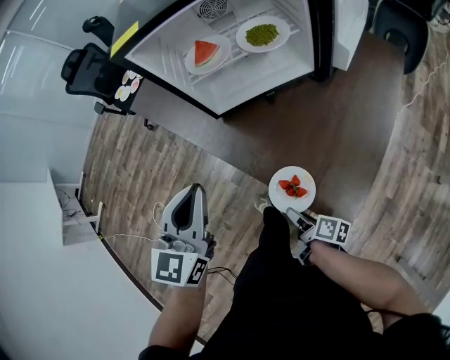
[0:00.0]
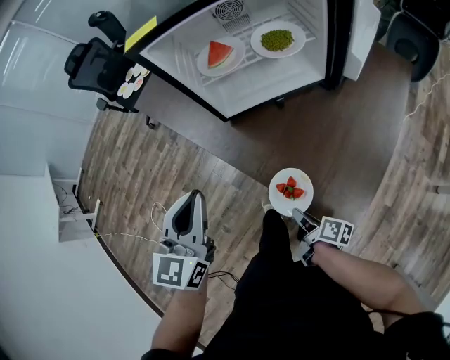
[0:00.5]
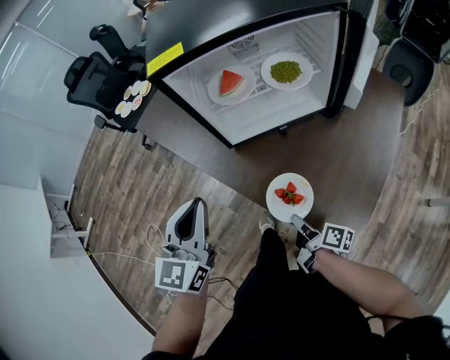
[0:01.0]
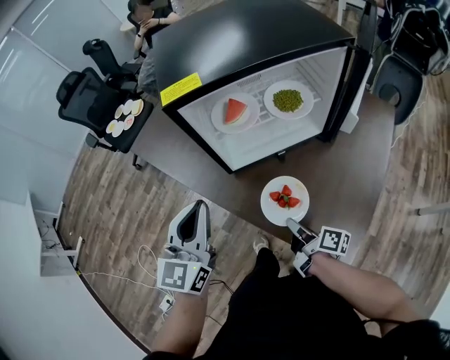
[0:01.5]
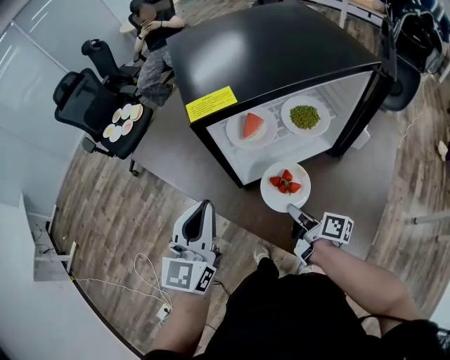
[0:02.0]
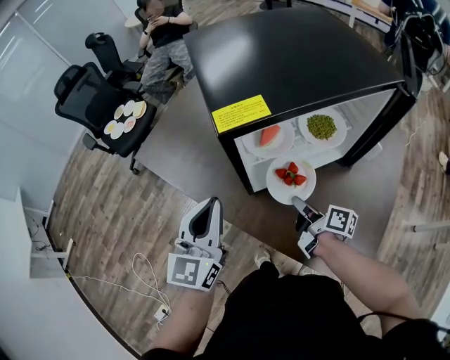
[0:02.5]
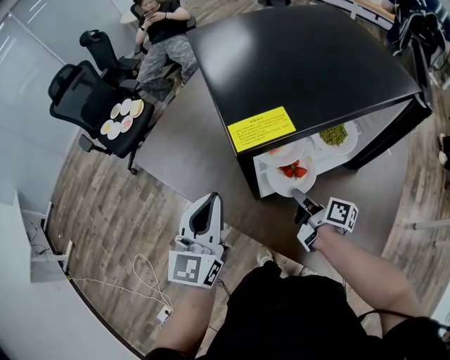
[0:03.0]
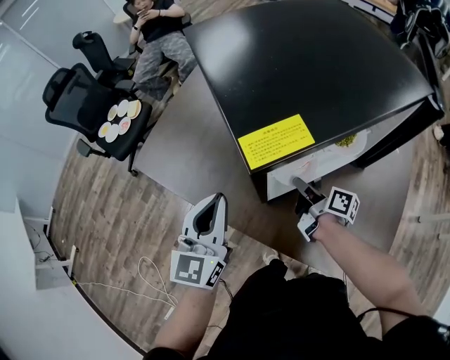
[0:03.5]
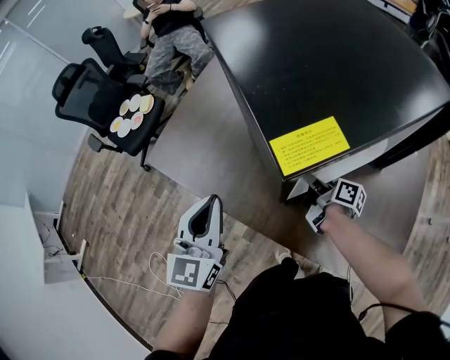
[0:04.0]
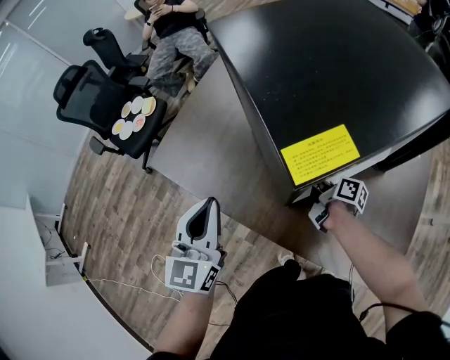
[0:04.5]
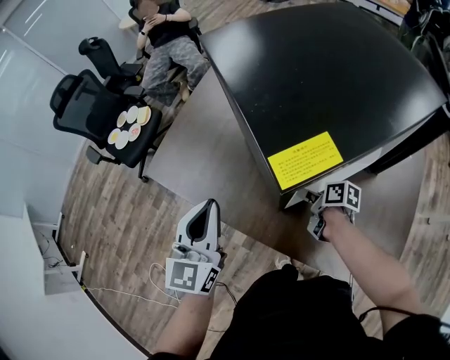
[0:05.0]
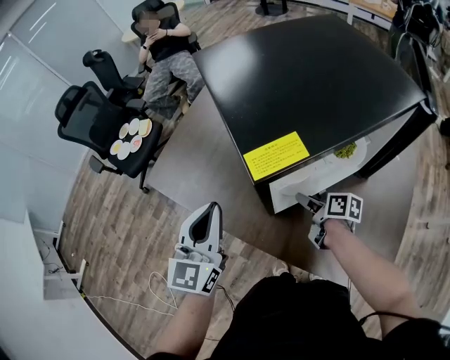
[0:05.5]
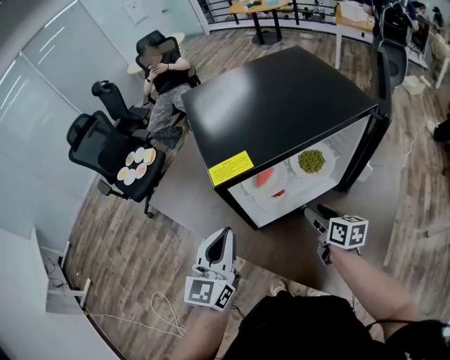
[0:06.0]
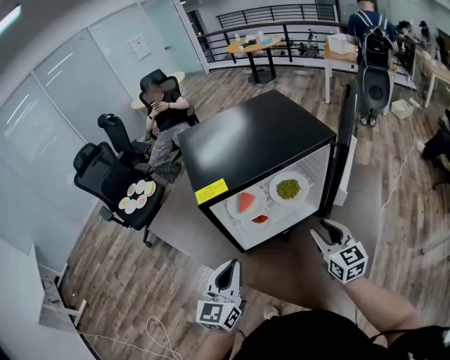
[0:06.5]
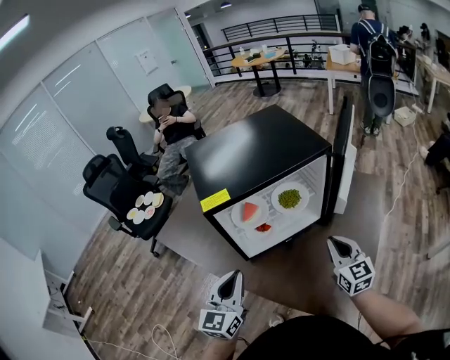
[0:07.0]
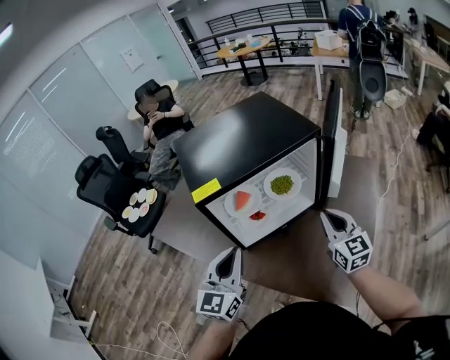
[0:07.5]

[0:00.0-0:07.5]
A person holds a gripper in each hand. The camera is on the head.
0:00.0 to 0:02.0: The left gripper shifts roughly 20 cm forward and to the left; the right gripper shifts approximately 30 cm forward and upward, and closes its fingers.
0:02.0 to 0:04.0: The left gripper is displaced forward and to the left by approximately 15 cm. The right gripper shifts roughly 20 cm forward.
0:04.0 to 0:05.5: The right gripper opens up.
0:05.5 to 0:07.5: The right gripper shifts approximately 35 cm upward, to the right and backward, rotates around the line of its fingers by roughly 60 degrees, counterclockwise from behind, and closes its fingers, while the left gripper travels to the right and backward by about 20 cm.

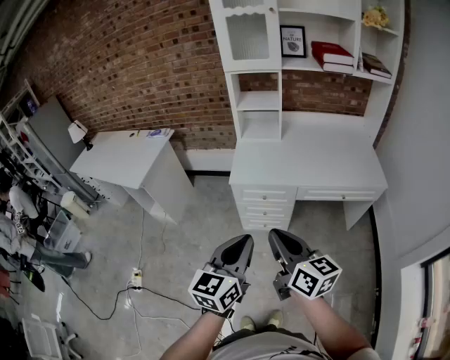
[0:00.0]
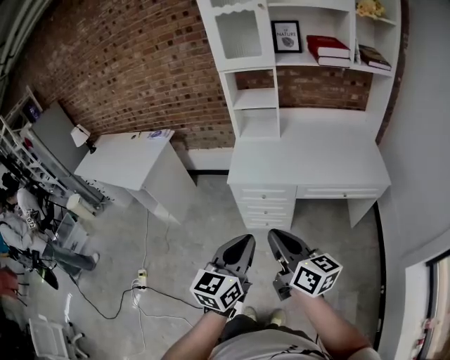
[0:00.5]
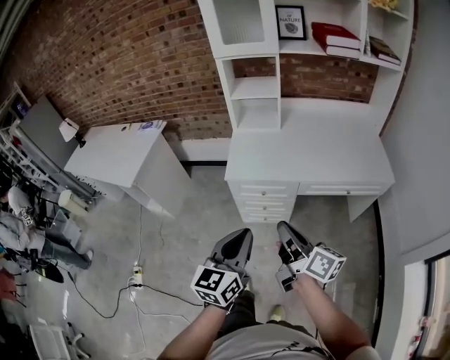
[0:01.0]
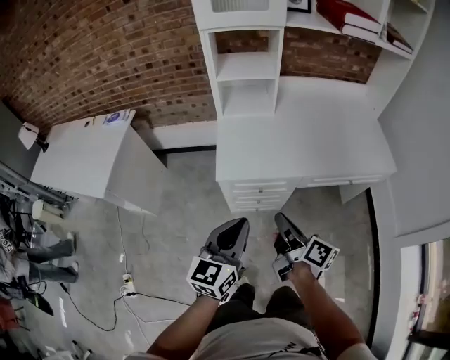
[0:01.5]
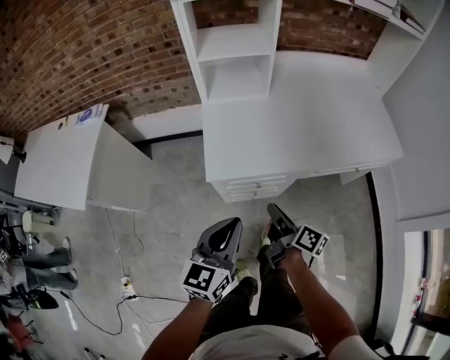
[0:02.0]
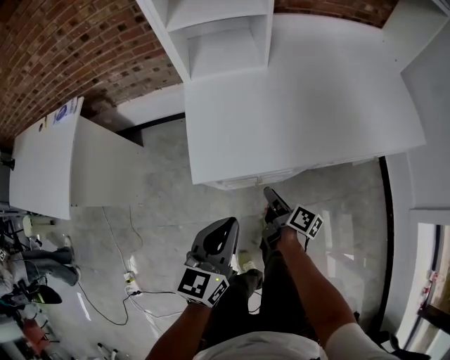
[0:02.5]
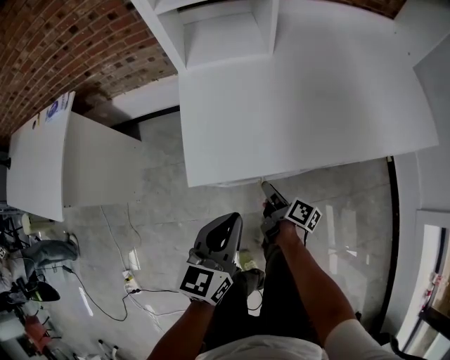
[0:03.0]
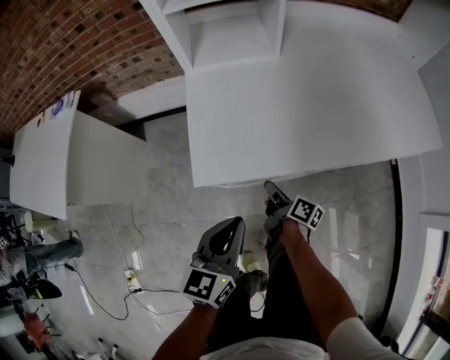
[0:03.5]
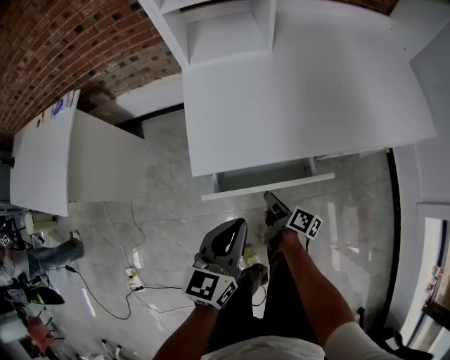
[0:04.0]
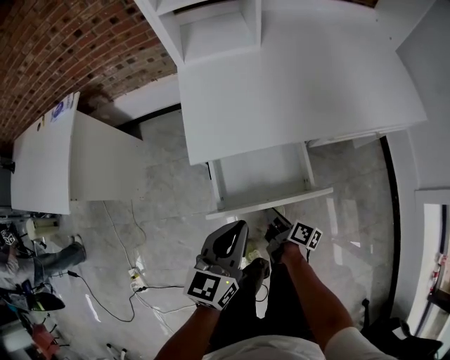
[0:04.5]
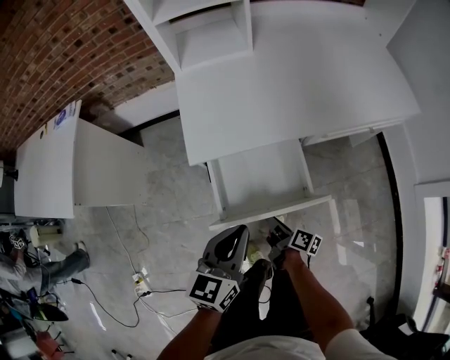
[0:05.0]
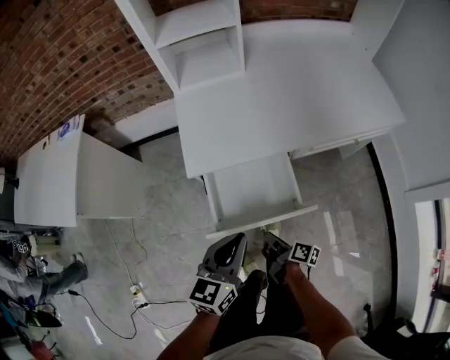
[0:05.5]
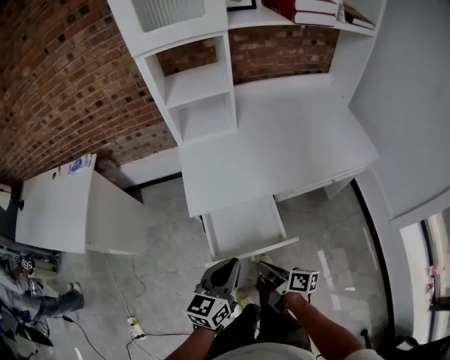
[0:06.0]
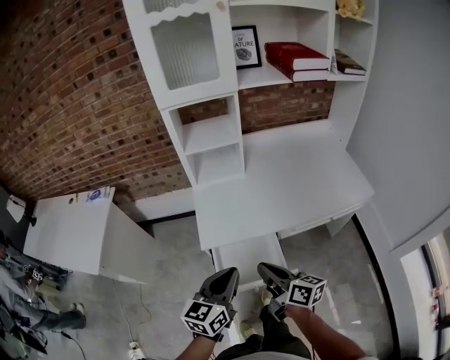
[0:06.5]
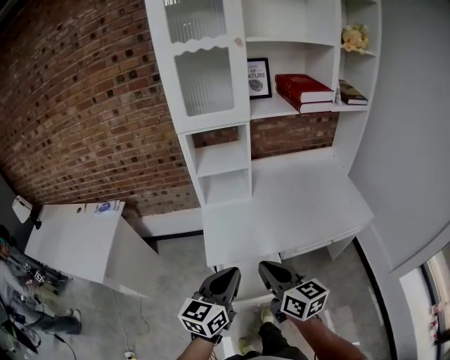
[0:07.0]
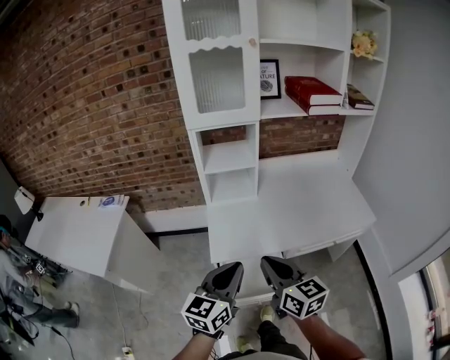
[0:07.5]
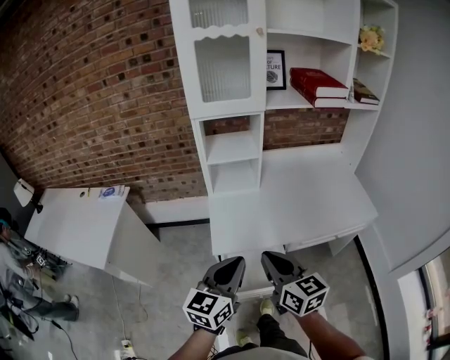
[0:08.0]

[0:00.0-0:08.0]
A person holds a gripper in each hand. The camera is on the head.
0:00.0 to 0:02.0: The grippers both shift forward and downward by roughly 40 cm. The right gripper rolls clockwise, seen from behind, by some 40 degrees.
0:02.0 to 0:04.0: The right gripper is displaced downward by roughly 25 cm. The left gripper heads downward, covering about 15 cm.
0:04.0 to 0:06.0: The right gripper moves upward and backward, approximately 25 cm, while the left gripper heads upward and backward, covering some 15 cm.
0:06.0 to 0:08.0: The right gripper is displaced upward by some 30 cm, and rotates around the line of its fingers by roughly 50 degrees, counterclockwise from behind, while the left gripper heads upward, covering about 20 cm.

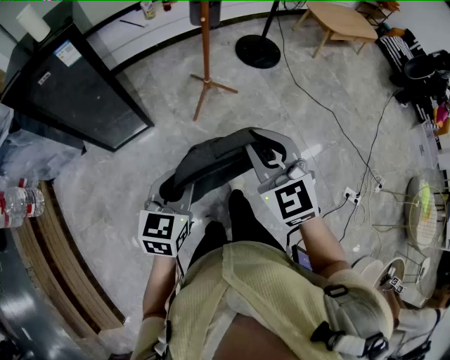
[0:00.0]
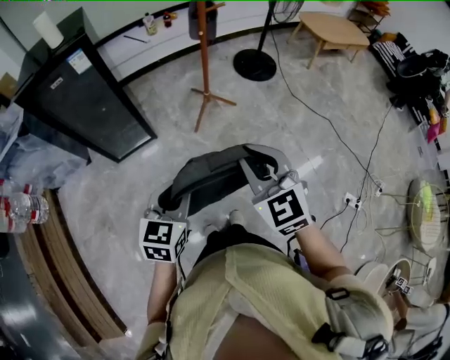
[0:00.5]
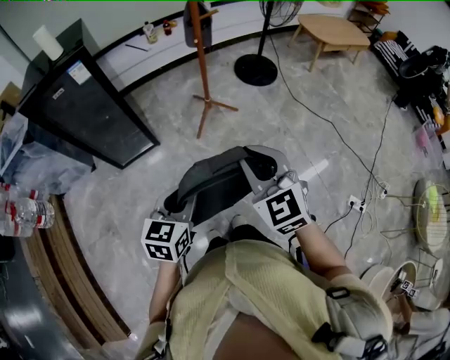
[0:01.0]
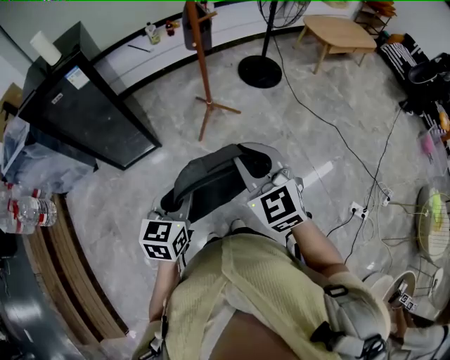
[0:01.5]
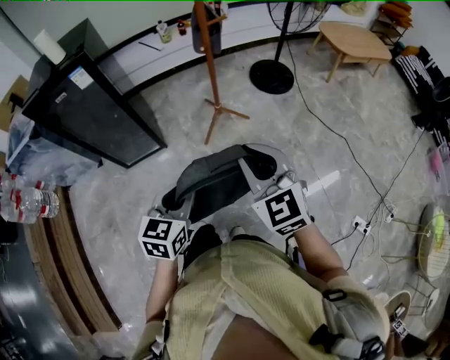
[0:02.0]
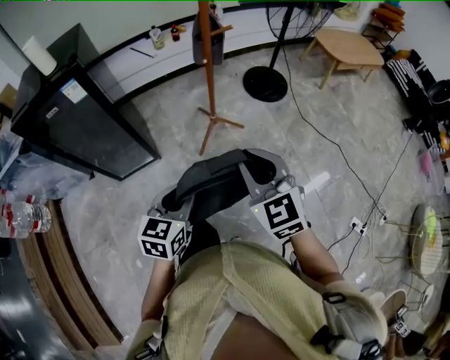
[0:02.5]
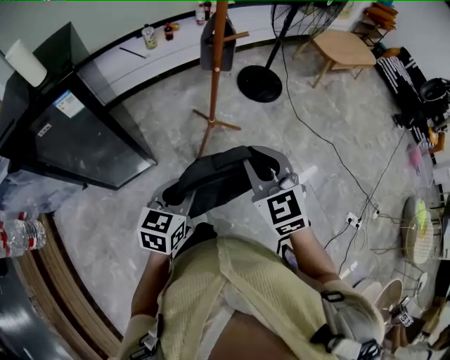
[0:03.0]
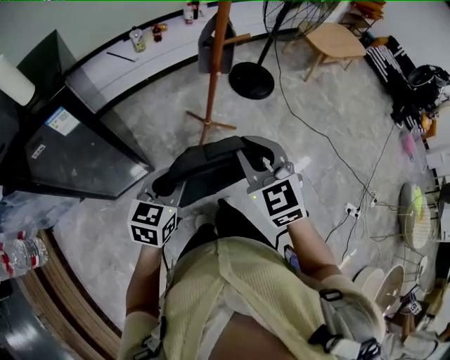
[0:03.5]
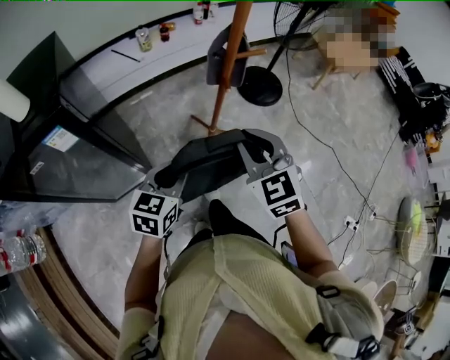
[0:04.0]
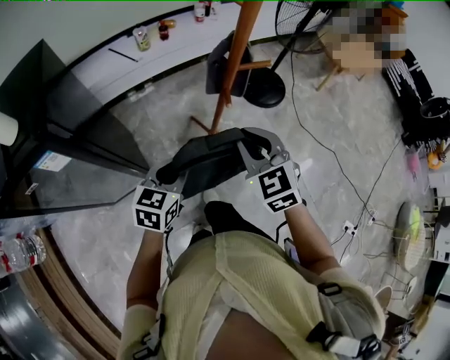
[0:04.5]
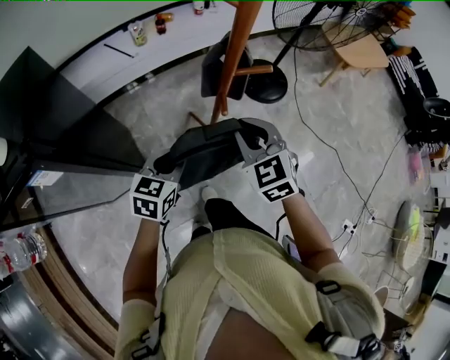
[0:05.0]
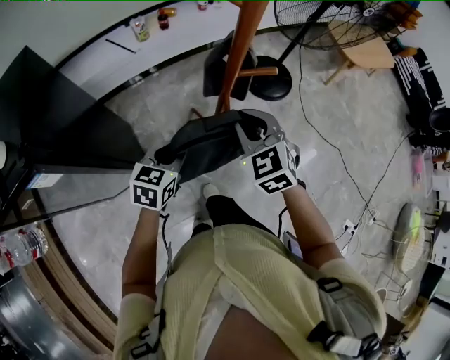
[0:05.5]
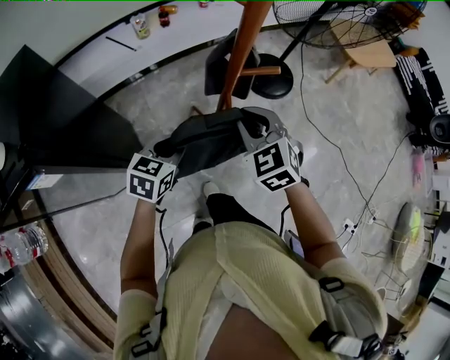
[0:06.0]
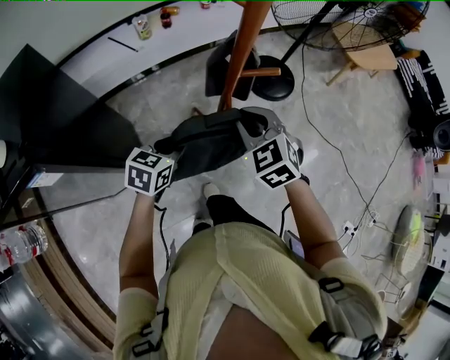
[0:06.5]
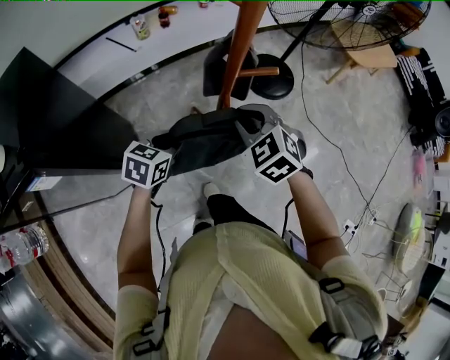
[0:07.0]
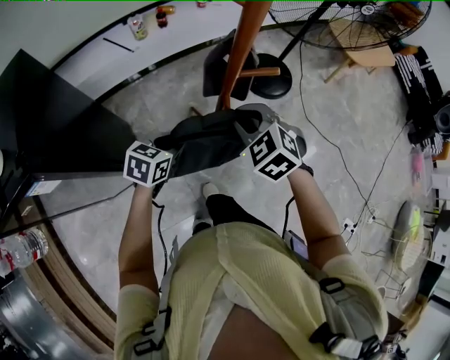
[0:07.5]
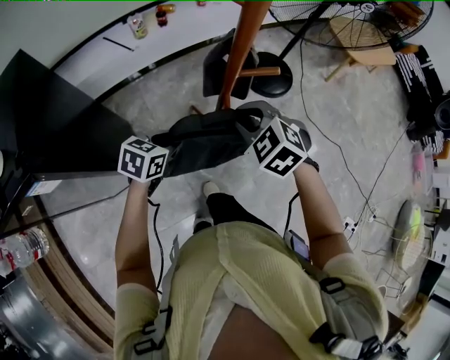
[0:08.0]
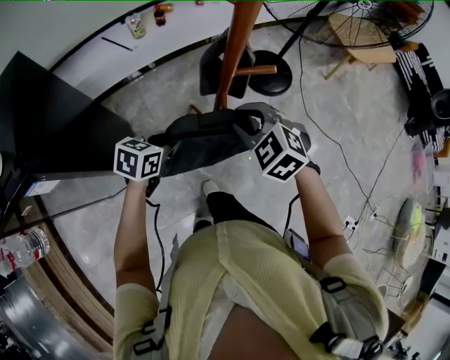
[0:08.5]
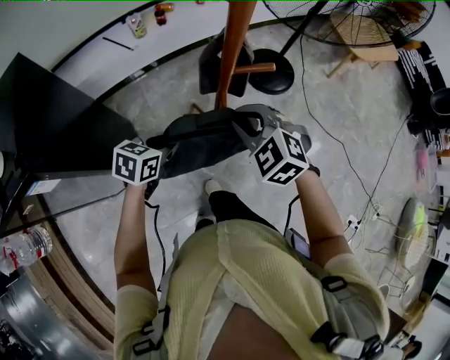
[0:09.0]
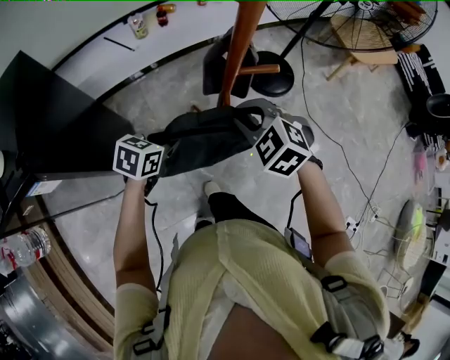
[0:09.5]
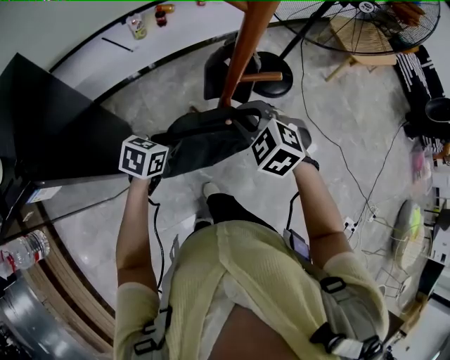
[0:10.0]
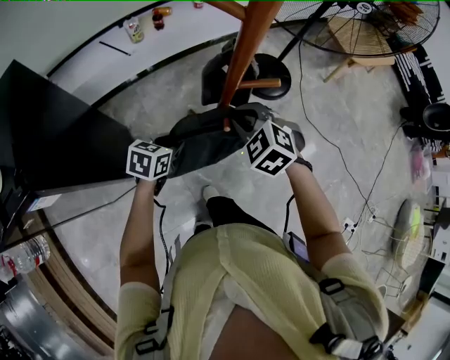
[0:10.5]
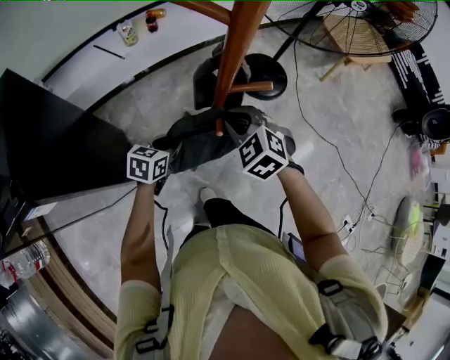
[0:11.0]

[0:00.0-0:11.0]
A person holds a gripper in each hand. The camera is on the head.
0:00.0 to 0:02.0: Both grippers travel together to the right, about 5 cm. The left gripper travels backward and back again, some 5 cm each way. The right gripper goes backward and returns, some 5 cm each way.
0:02.0 to 0:03.5: The grippers both shift forward and to the left by approximately 25 cm.
0:03.5 to 0:05.5: The two grippers go about 25 cm forward.
0:05.5 to 0:07.5: The left gripper shifts by some 5 cm.
0:07.5 to 0:09.0: The grippers make only small movements.
0:09.0 to 0:11.0: The left gripper heads downward and forward, covering roughly 10 cm; the right gripper travels forward by roughly 5 cm.
